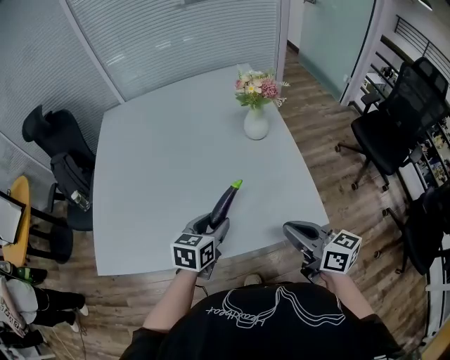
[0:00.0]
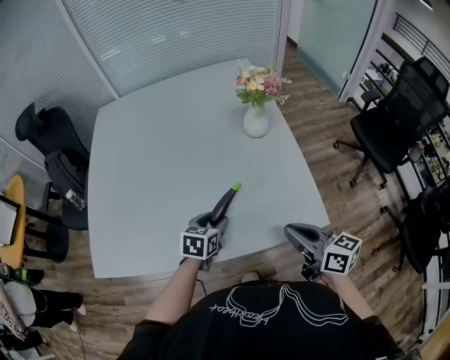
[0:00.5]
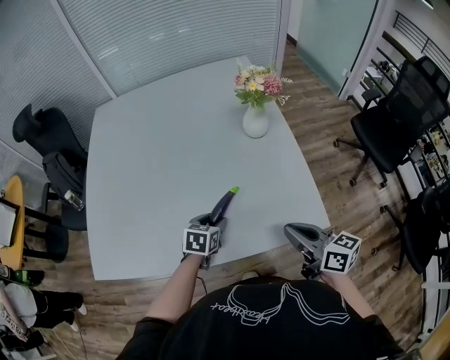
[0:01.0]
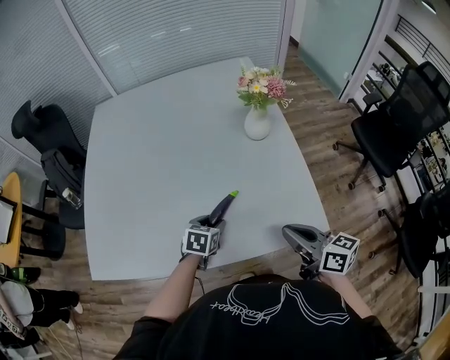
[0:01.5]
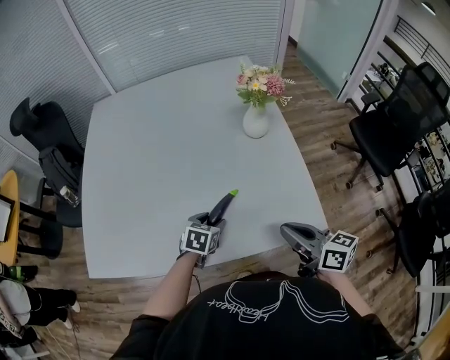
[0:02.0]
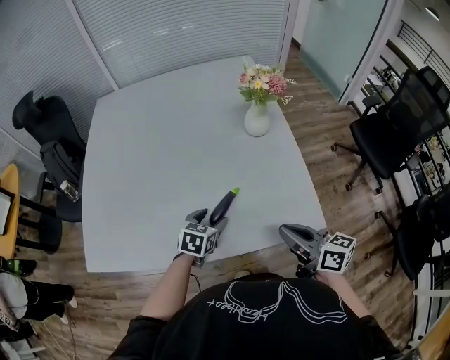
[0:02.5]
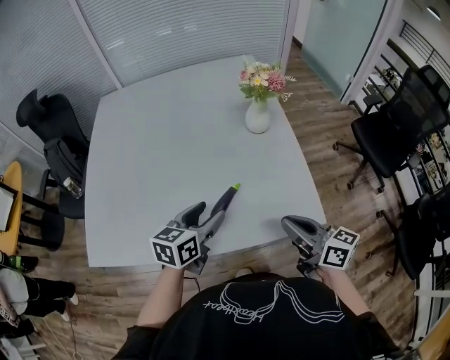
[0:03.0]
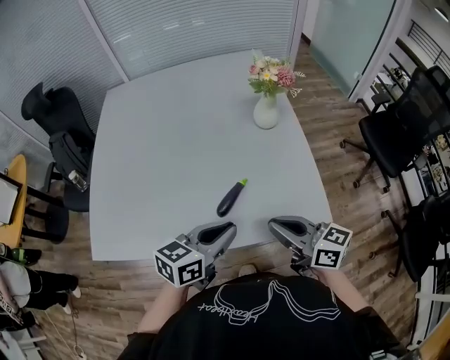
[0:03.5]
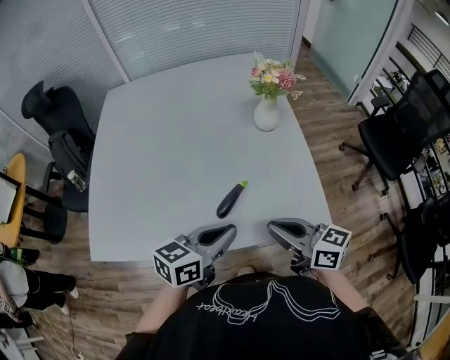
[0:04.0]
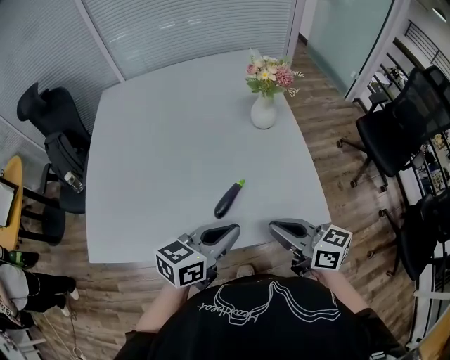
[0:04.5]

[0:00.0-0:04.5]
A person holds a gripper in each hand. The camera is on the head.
0:00.0 to 0:02.0: The left gripper goes roughly 15 cm downward.
0:02.0 to 0:04.5: The right gripper shifts by some 5 cm. Meanwhile the left gripper is displaced upward and backward by some 20 cm, tilts its fingers roughly 30 degrees upward, and closes its fingers.

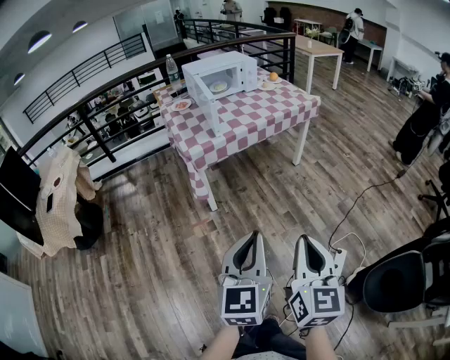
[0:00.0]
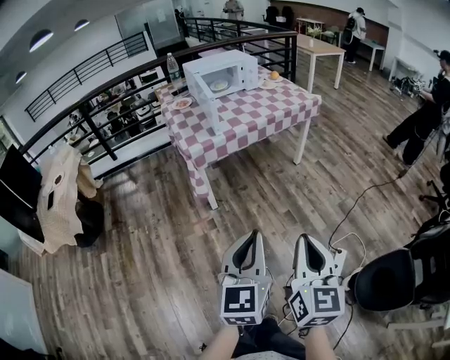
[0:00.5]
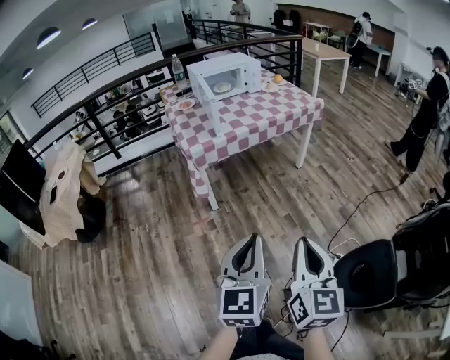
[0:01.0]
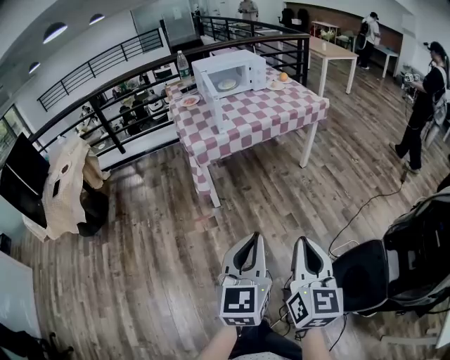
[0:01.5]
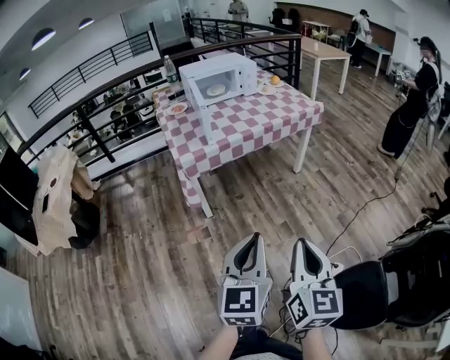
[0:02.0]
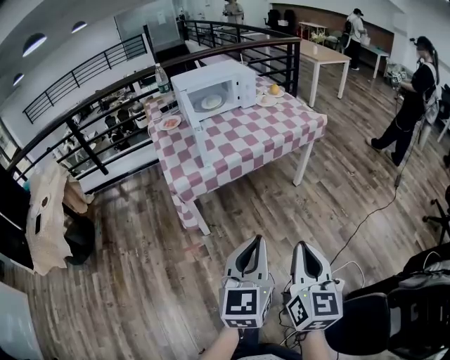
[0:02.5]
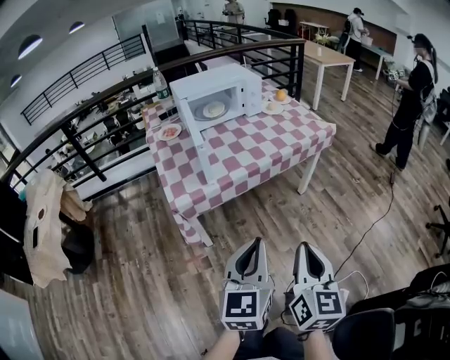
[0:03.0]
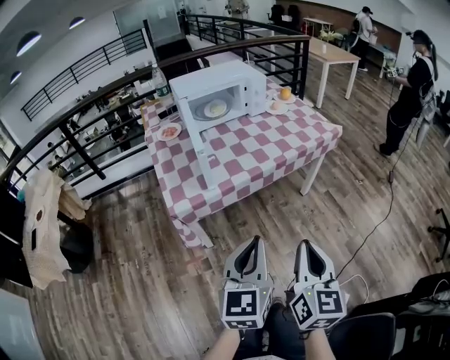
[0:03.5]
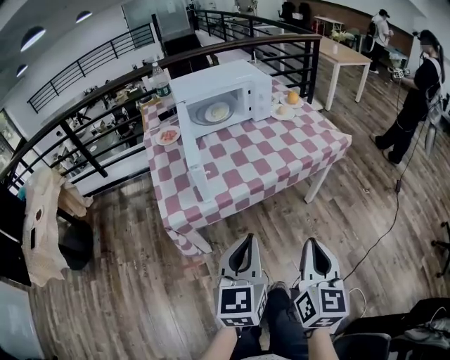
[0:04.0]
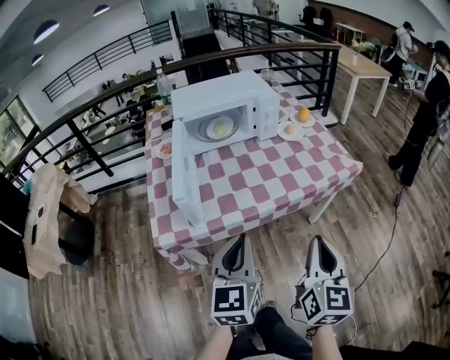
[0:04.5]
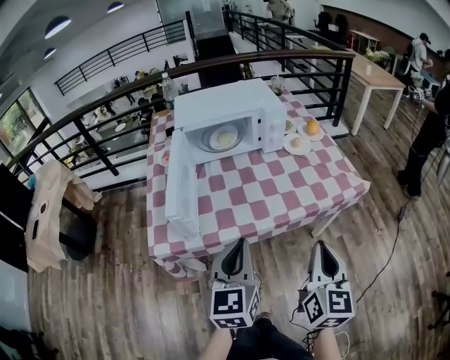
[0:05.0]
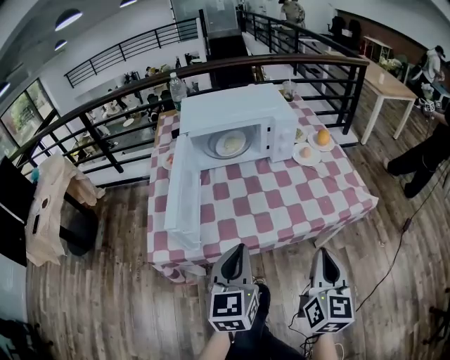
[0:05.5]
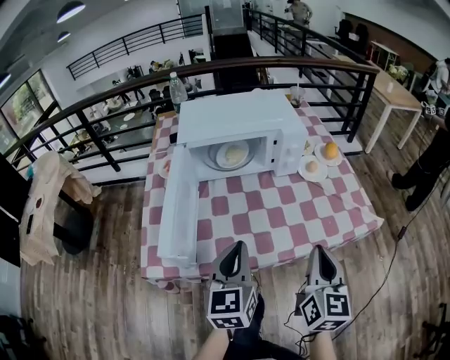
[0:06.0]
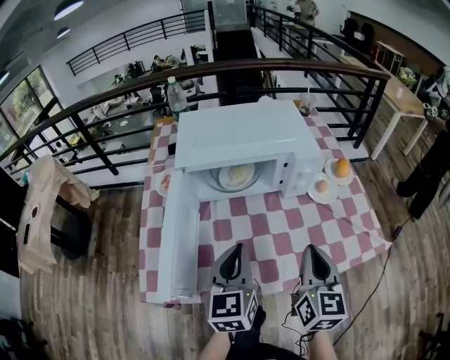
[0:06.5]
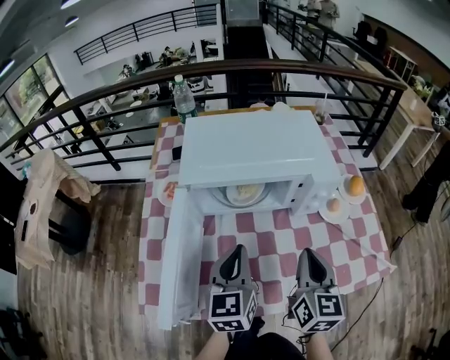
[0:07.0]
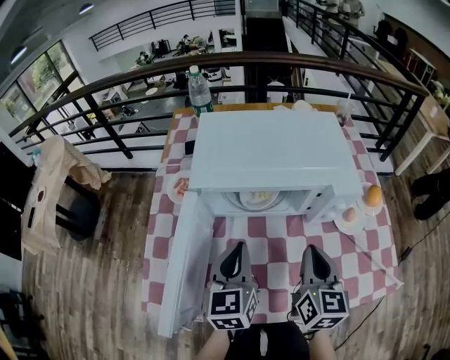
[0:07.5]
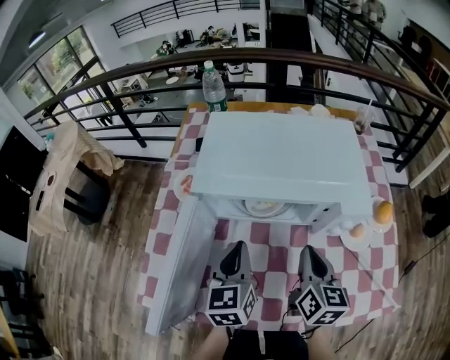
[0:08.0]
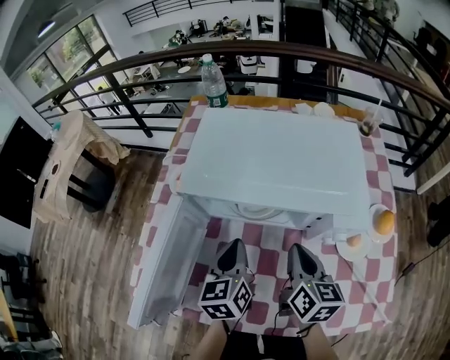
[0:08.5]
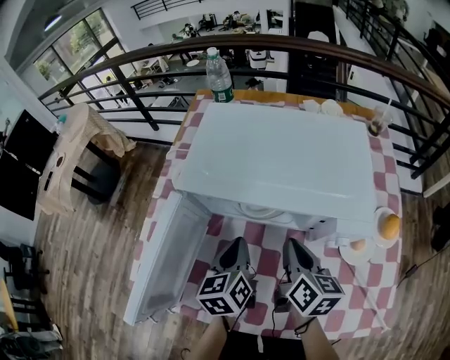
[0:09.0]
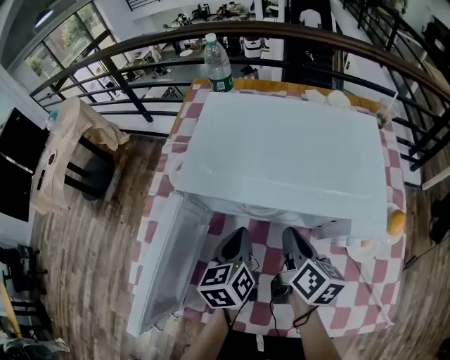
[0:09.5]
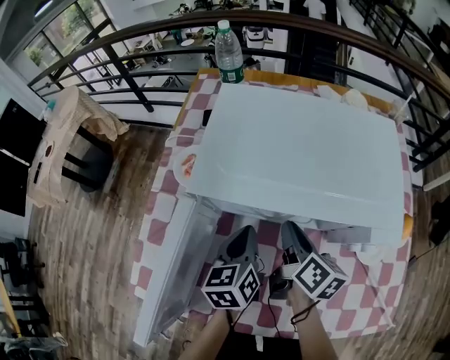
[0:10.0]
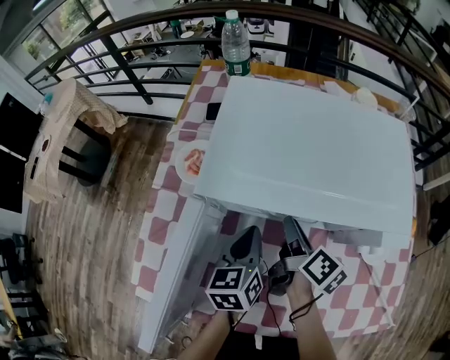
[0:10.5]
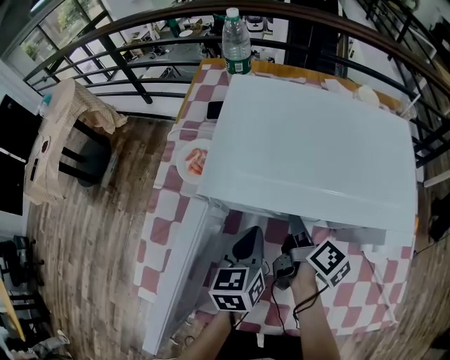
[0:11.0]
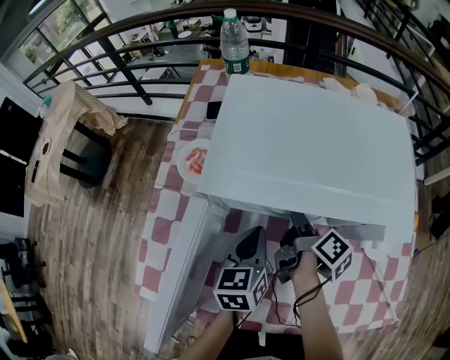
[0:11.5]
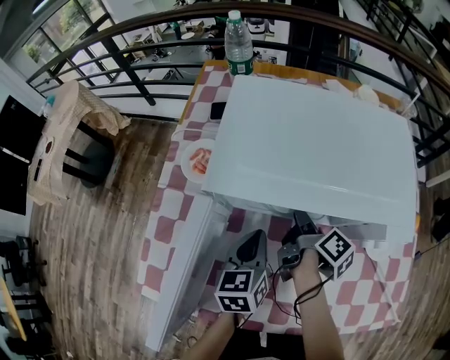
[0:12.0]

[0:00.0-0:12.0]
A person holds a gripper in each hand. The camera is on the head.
0:00.0 to 0:02.0: Both grippers move forward and to the right, about 10 cm.
0:02.0 to 0:04.0: Both grippers travel together forward, some 35 cm.
0:04.0 to 0:06.0: Both grippers move forward, about 30 cm.
0:06.0 to 0:08.0: Both grippers move forward, approximately 25 cm. The right gripper changes its angle by roughly 20 degrees.
0:08.0 to 0:10.0: The right gripper shifts some 15 cm forward, to the left and downward, and swivels approximately 30 degrees. Meanwhile the left gripper goes some 10 cm downward and forward.
0:10.0 to 0:12.0: The right gripper ends up about 5 cm from where it was, and changes its angle by approximately 30 degrees.

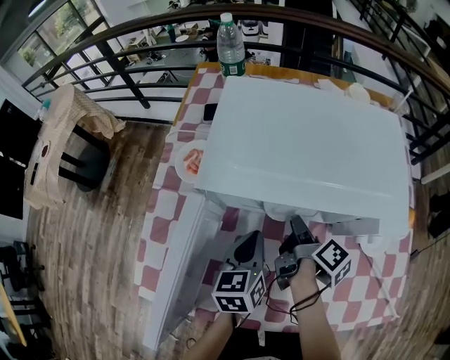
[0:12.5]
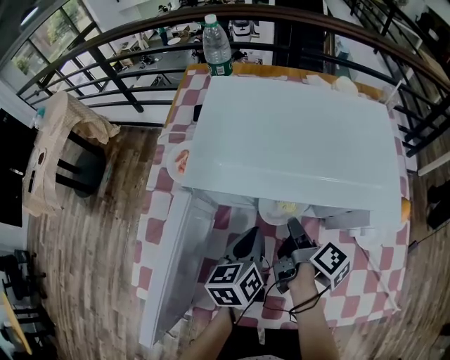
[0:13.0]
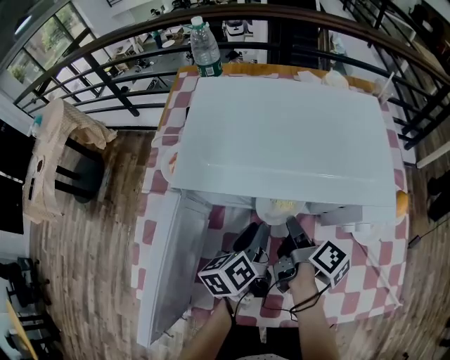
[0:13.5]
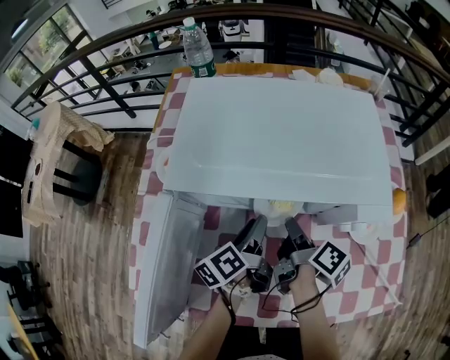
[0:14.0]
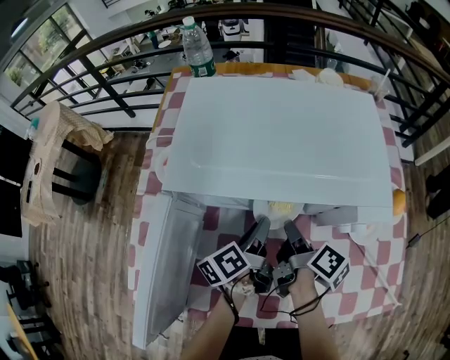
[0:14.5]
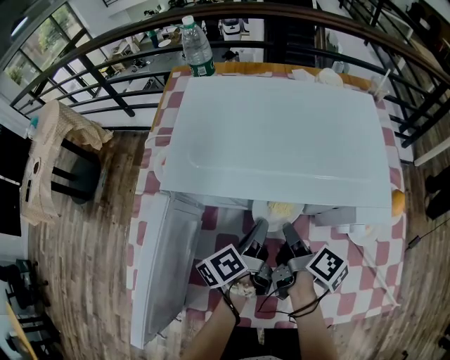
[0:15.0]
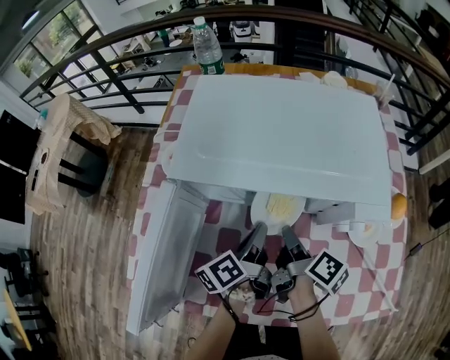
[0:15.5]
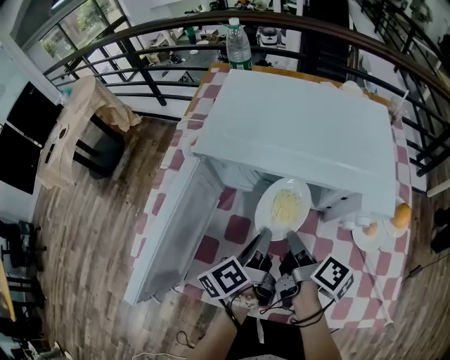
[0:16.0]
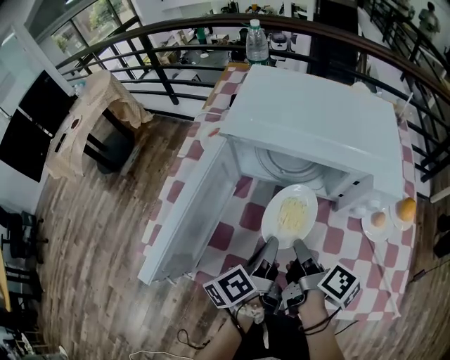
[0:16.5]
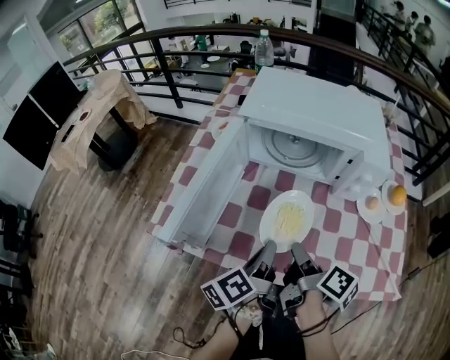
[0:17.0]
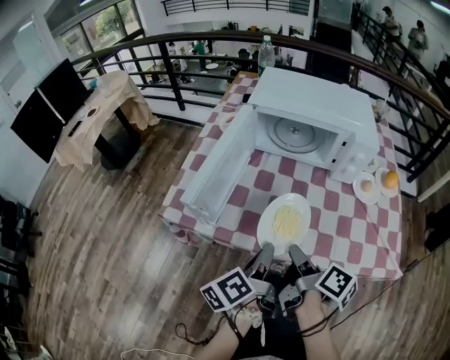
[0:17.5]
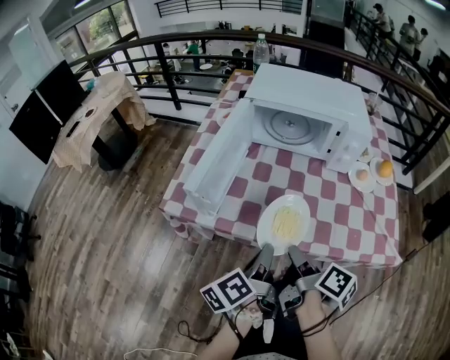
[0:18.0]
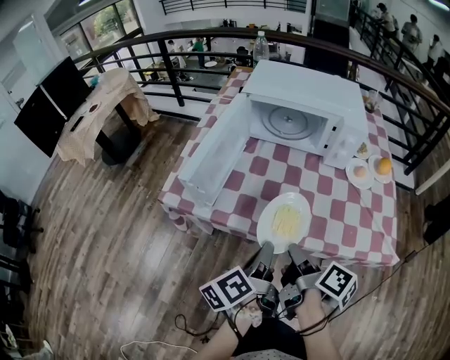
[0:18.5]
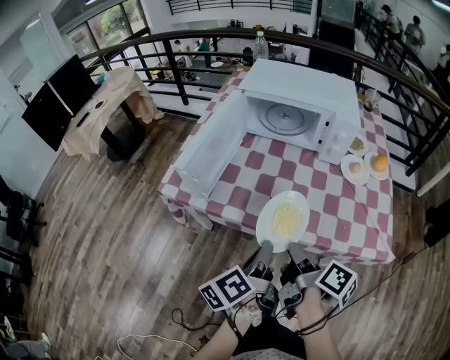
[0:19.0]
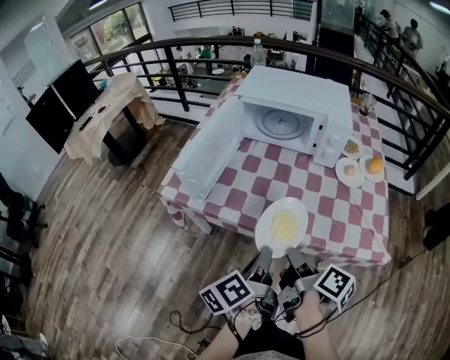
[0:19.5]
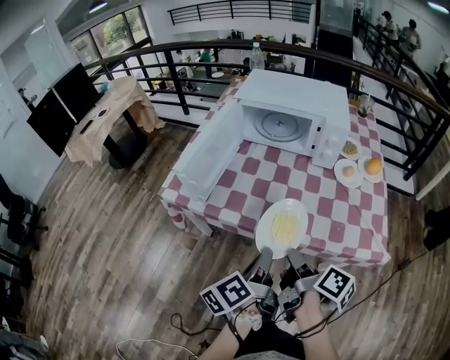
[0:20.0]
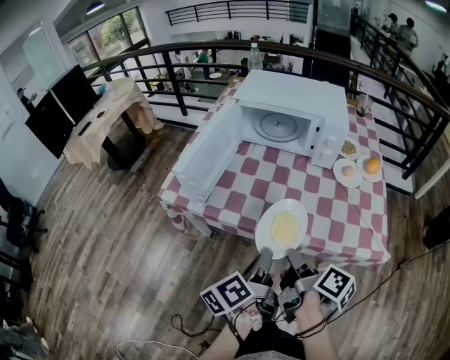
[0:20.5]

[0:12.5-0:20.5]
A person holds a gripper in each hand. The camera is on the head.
0:12.5 to 0:14.5: The left gripper shifts approximately 5 cm to the right, rolls counterclockwise, seen from behind, by roughly 40 degrees, and opens its fingers. The right gripper moves some 5 cm.
0:14.5 to 0:16.5: The two grippers go about 15 cm backward.
0:16.5 to 0:18.5: The grippers both shift backward by some 25 cm.
0:18.5 to 0:20.5: The right gripper moves about 5 cm; the left gripper heads backward, covering some 5 cm.

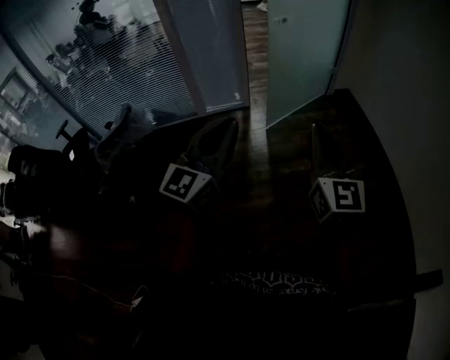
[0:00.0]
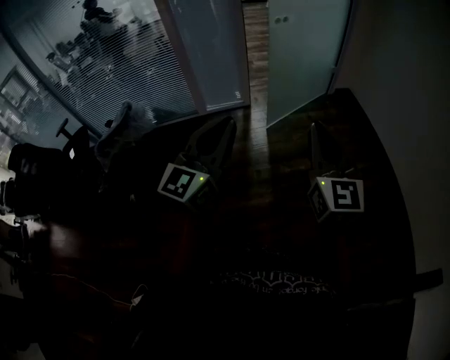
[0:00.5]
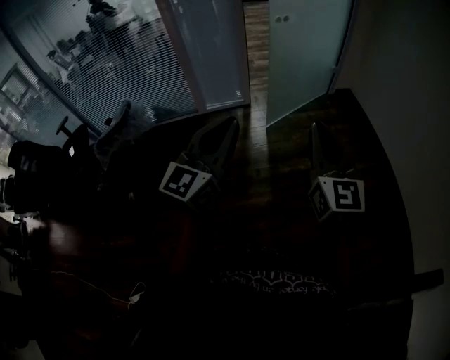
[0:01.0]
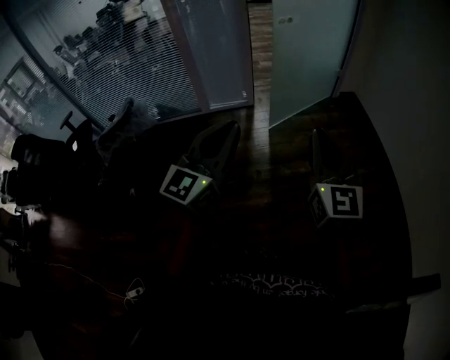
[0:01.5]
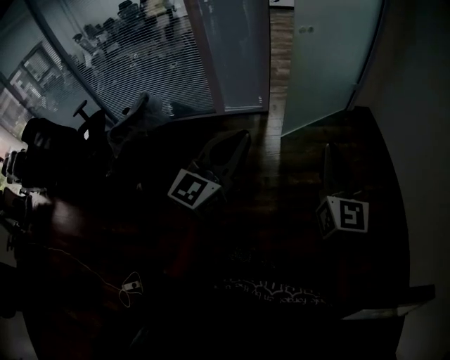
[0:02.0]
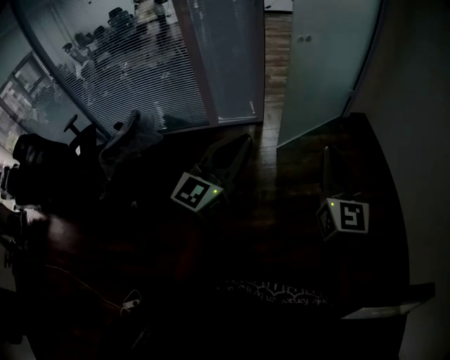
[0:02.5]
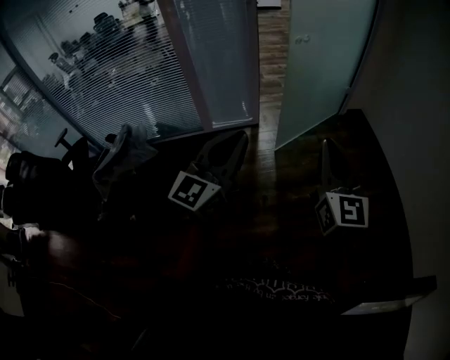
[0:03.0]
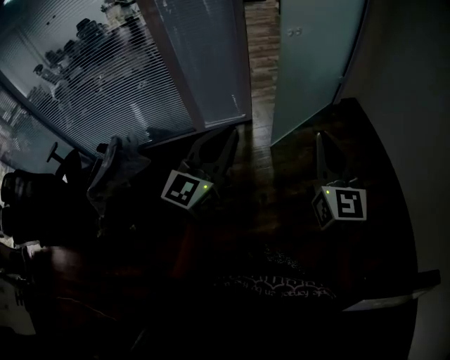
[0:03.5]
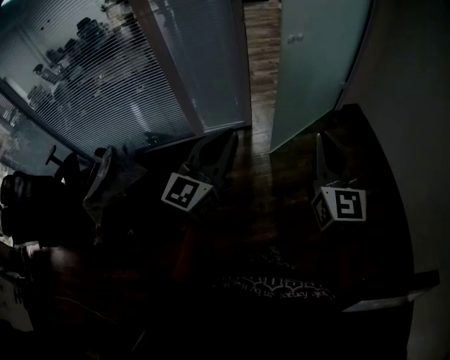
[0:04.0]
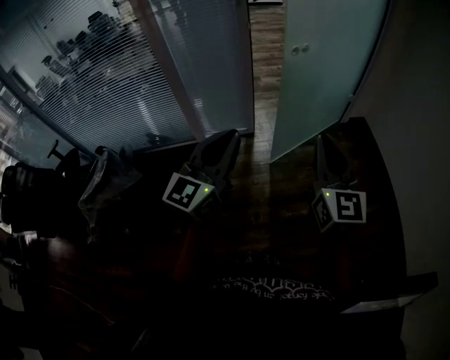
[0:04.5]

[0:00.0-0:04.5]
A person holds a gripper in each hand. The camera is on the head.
0:00.0 to 0:02.0: The grippers make only small movements.
0:02.0 to 0:04.5: Both grippers move forward, about 30 cm.
